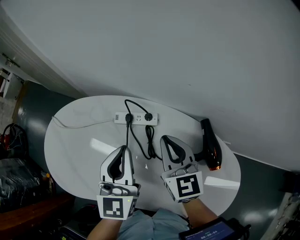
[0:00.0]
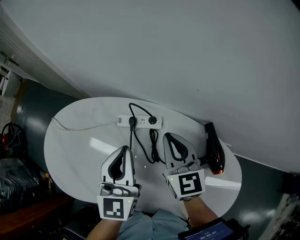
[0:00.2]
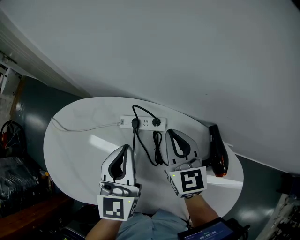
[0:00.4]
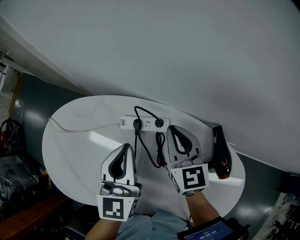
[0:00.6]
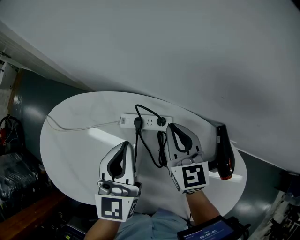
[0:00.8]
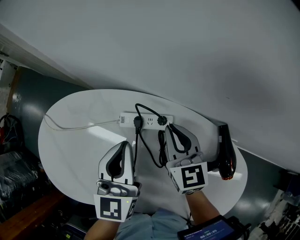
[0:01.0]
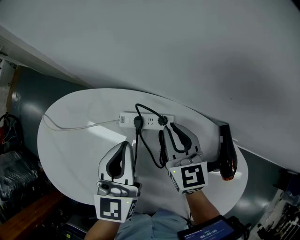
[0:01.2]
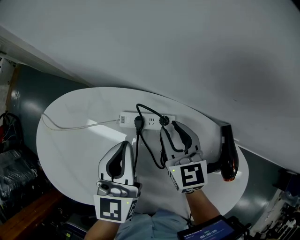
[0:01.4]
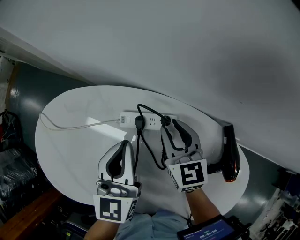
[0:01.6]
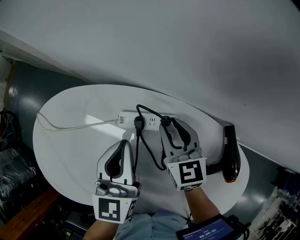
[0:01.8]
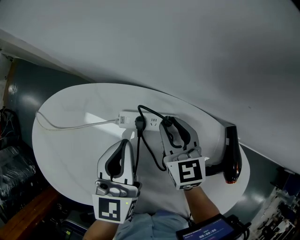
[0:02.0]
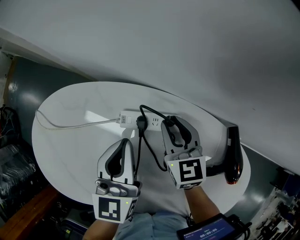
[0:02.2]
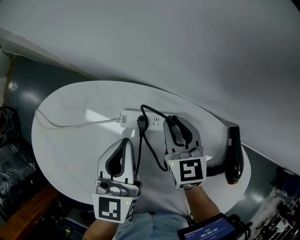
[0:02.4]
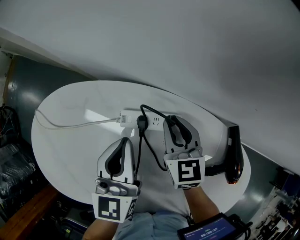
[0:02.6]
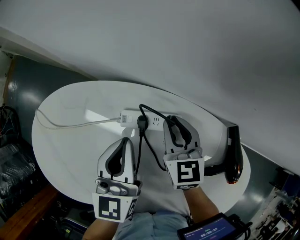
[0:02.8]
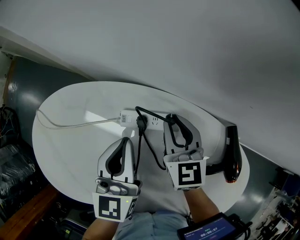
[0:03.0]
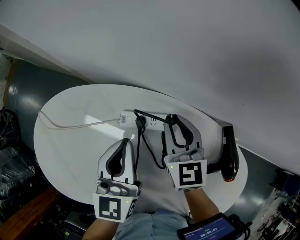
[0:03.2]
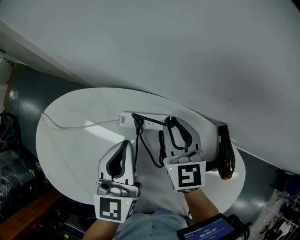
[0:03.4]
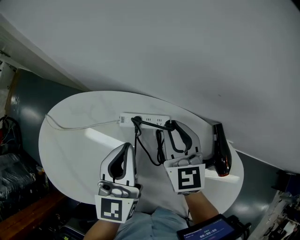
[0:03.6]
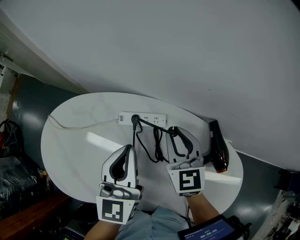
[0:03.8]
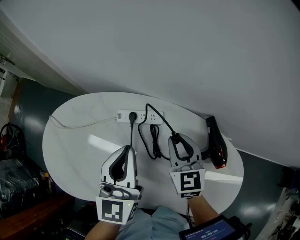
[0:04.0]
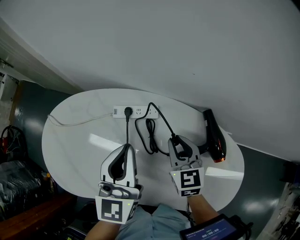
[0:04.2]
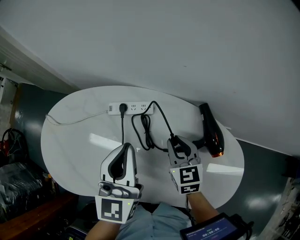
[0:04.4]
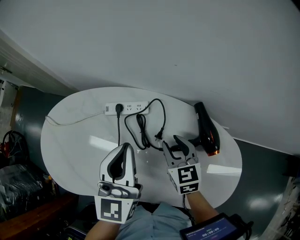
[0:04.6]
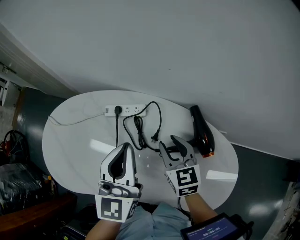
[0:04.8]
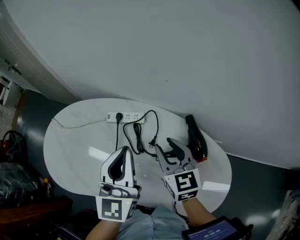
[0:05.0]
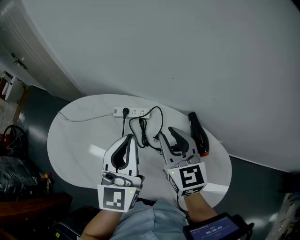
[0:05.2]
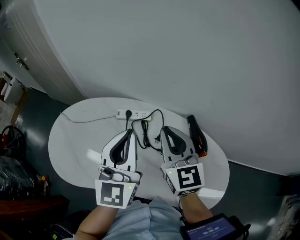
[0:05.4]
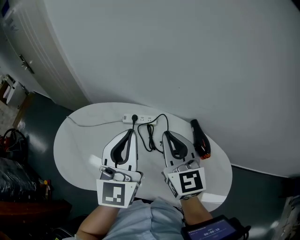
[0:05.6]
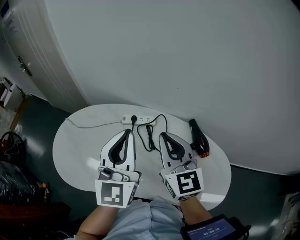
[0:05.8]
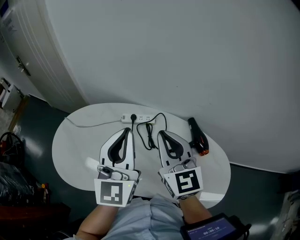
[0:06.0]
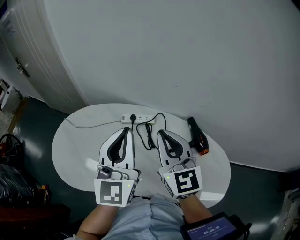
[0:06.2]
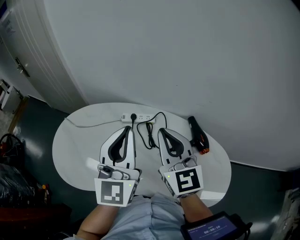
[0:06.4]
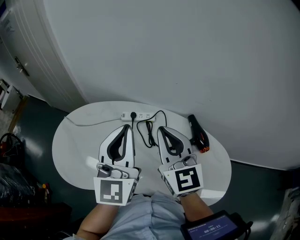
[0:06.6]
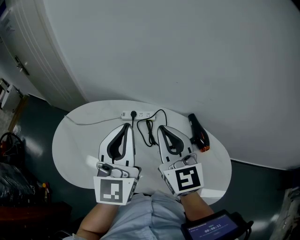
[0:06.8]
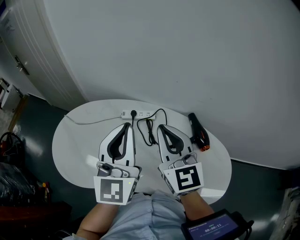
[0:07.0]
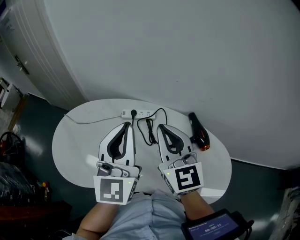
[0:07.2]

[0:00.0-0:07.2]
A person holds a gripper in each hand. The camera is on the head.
0:00.0 to 0:01.4: The right gripper goes about 10 cm downward and forward, and opens its fingers, while the left gripper goes about 10 cm forward and downward.
0:01.4 to 0:02.8: There are only small adjustments of the grippers.
0:02.8 to 0:04.4: The right gripper goes some 15 cm backward and to the right; the left gripper heads backward, upward and to the right, covering approximately 15 cm.
0:04.4 to 0:05.8: The left gripper shifts approximately 10 cm upward, while the right gripper heads upward, covering roughly 25 cm, and angles its fingers upward, by roughly 30 degrees.
0:05.8 to 0:07.2: The grippers make only small movements.

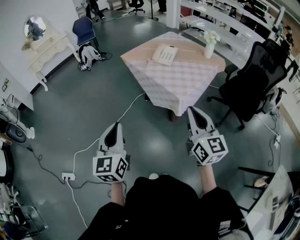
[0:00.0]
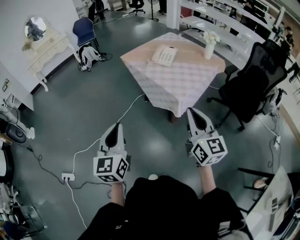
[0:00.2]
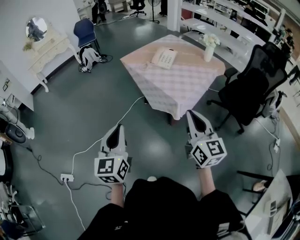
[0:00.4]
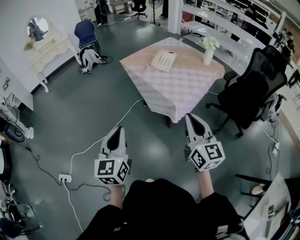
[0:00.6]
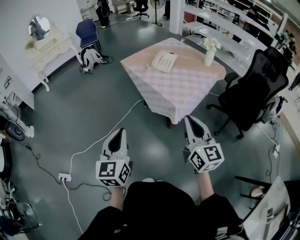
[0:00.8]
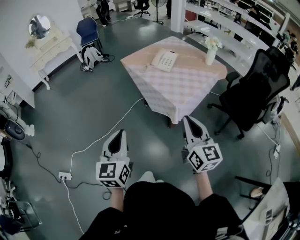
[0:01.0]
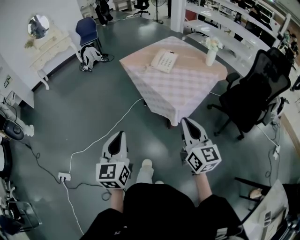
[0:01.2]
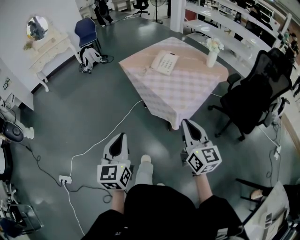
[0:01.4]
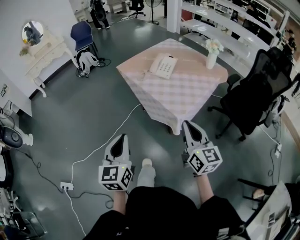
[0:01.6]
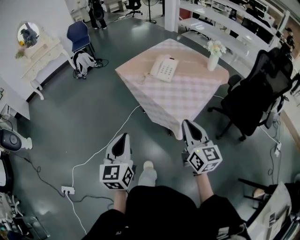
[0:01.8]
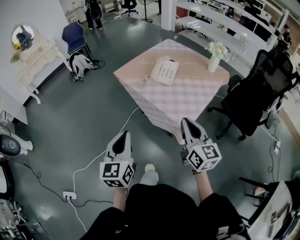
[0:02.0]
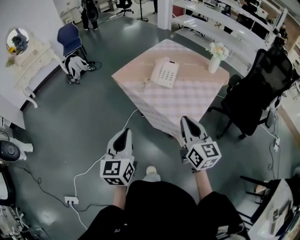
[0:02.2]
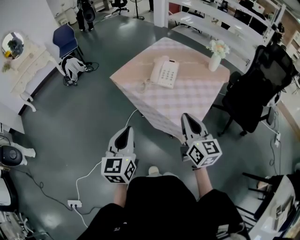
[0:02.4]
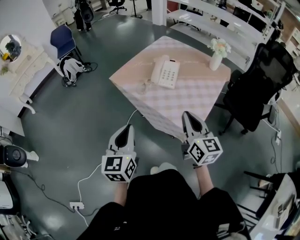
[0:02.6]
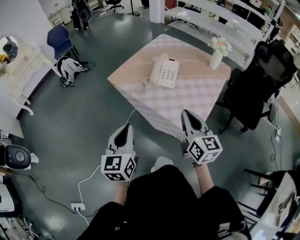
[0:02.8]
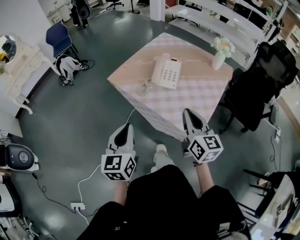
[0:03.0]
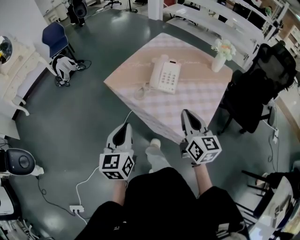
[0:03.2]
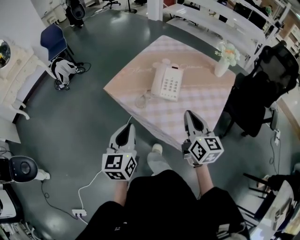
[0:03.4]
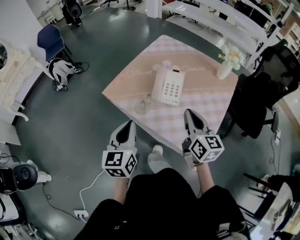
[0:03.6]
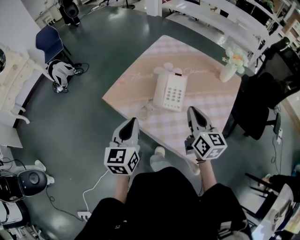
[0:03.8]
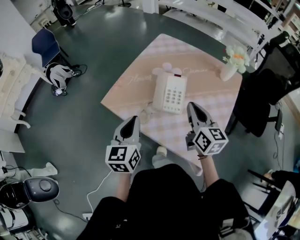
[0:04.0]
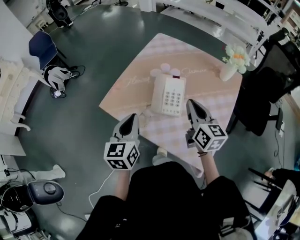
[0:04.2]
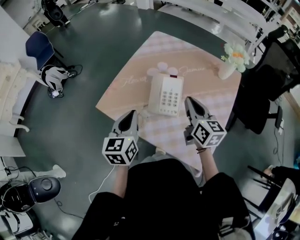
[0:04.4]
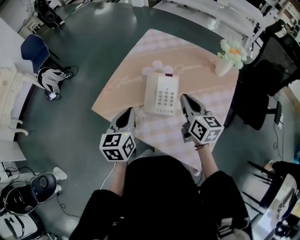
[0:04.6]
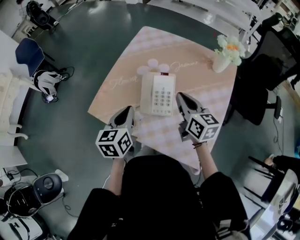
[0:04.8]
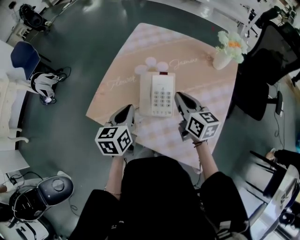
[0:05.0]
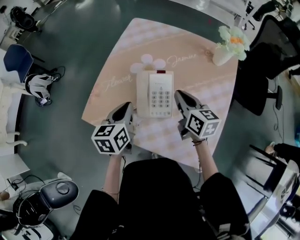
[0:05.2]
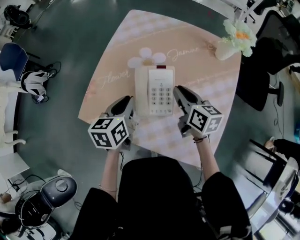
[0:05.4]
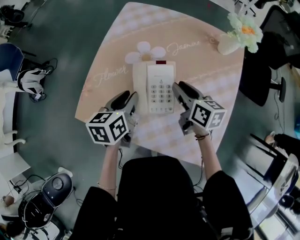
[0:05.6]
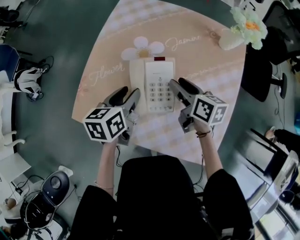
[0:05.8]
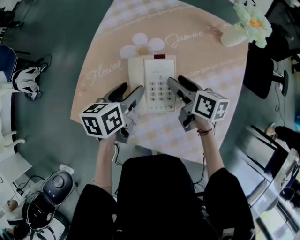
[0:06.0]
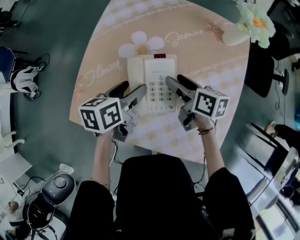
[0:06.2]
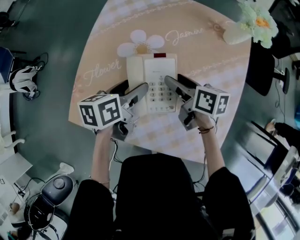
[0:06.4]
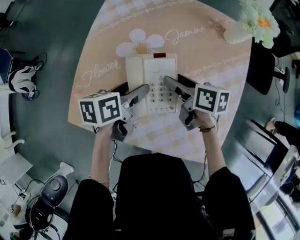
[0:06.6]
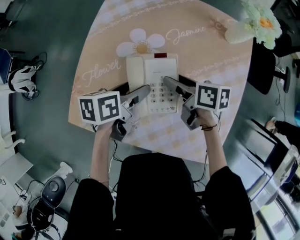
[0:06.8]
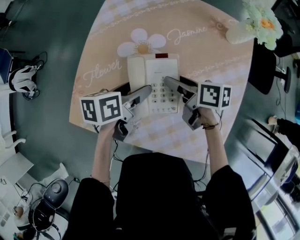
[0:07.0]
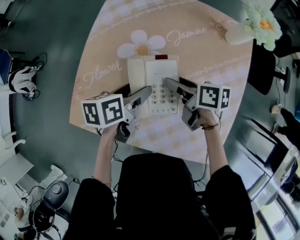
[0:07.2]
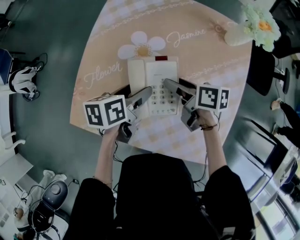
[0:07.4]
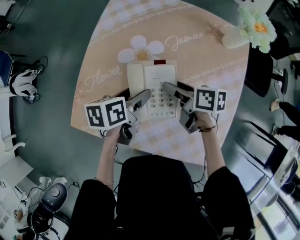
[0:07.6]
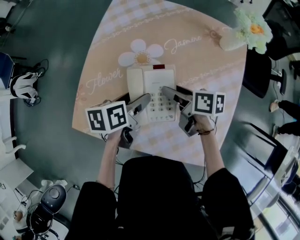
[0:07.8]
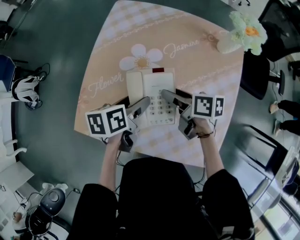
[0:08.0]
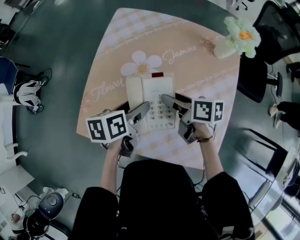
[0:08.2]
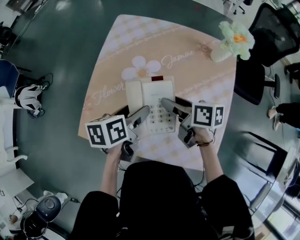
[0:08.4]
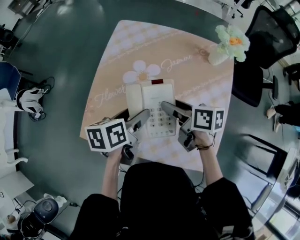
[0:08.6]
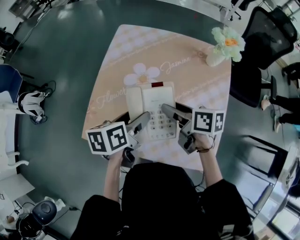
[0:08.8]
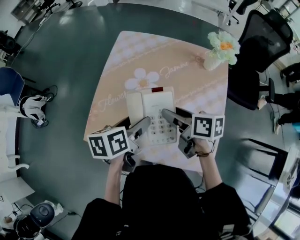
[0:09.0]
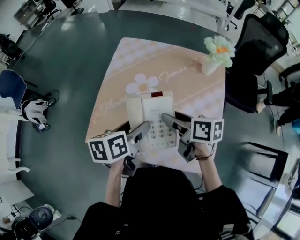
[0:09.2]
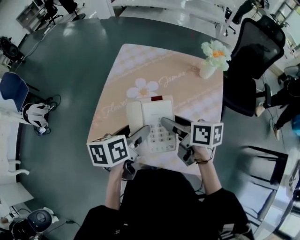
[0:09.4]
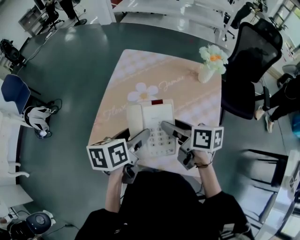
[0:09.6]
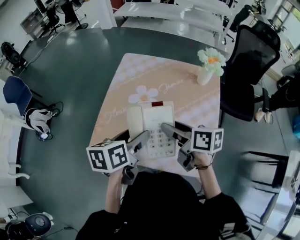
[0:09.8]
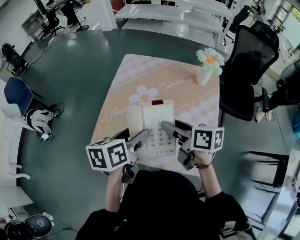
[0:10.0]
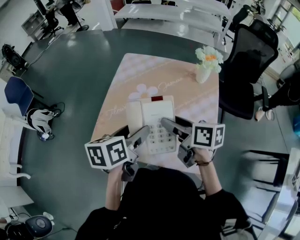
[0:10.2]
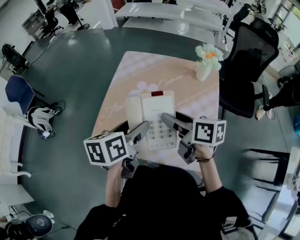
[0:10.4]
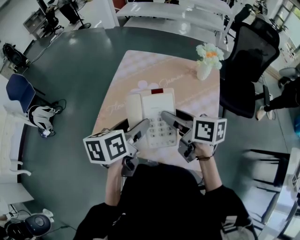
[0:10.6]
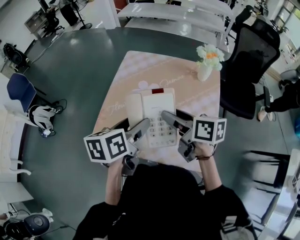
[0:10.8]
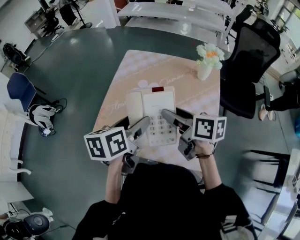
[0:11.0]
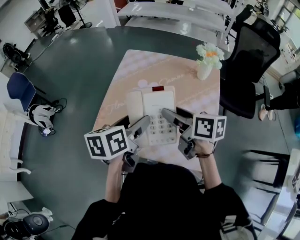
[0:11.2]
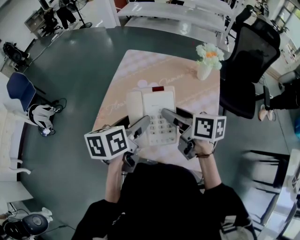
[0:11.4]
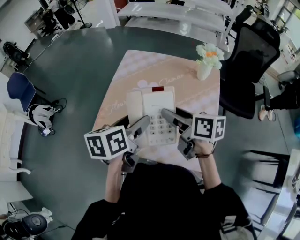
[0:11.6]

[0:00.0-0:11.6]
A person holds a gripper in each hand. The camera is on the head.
0:00.0 to 0:01.4: The left gripper travels to the right by approximately 5 cm. The right gripper travels forward by approximately 5 cm.
0:01.4 to 0:02.8: The grippers both shift forward by about 25 cm.
0:02.8 to 0:04.4: Both grippers travel together forward, about 30 cm.
0:04.4 to 0:05.8: The left gripper travels forward, downward and to the right by some 20 cm, turns by roughly 30 degrees, and opens. Meanwhile the right gripper moves downward and forward, roughly 15 cm, rotates roughly 30 degrees, and opens up.
0:05.8 to 0:07.2: The left gripper moves about 5 cm, rotates roughly 20 degrees, and opens up.
0:07.2 to 0:08.8: Both grippers move upward, some 10 cm.
0:08.8 to 0:10.2: Both grippers travel together upward and backward, roughly 15 cm.
0:10.2 to 0:11.6: The grippers stay close to where they were, moving slightly.

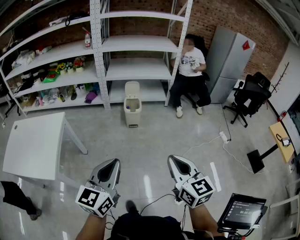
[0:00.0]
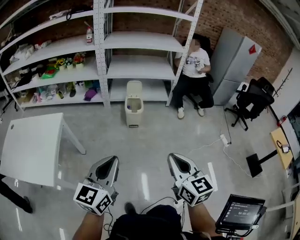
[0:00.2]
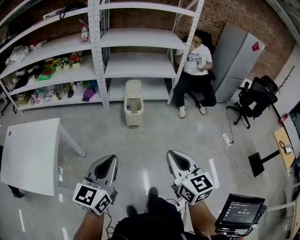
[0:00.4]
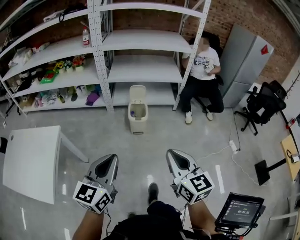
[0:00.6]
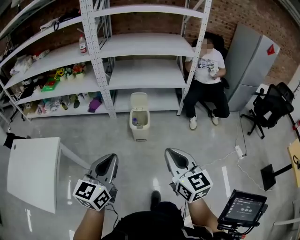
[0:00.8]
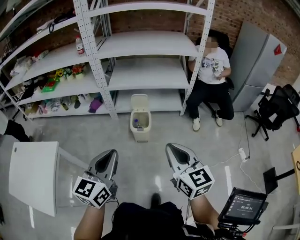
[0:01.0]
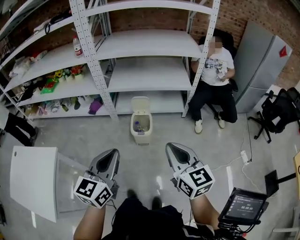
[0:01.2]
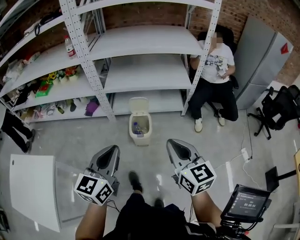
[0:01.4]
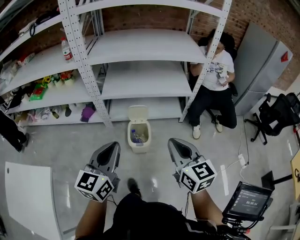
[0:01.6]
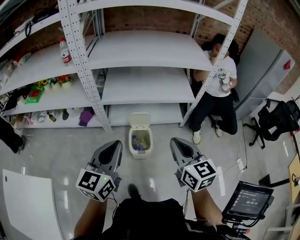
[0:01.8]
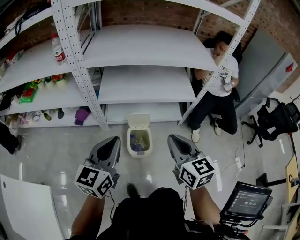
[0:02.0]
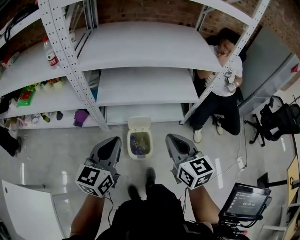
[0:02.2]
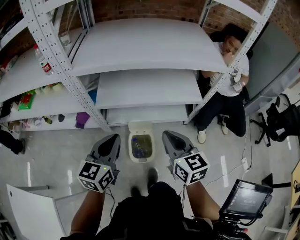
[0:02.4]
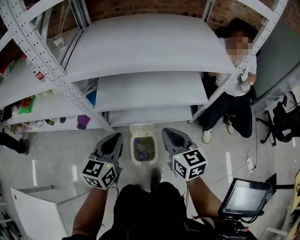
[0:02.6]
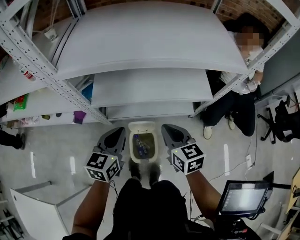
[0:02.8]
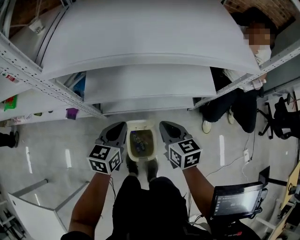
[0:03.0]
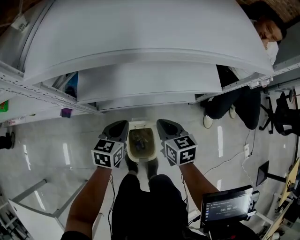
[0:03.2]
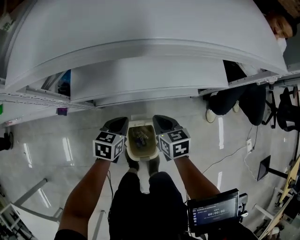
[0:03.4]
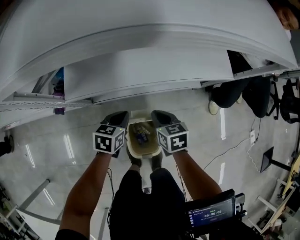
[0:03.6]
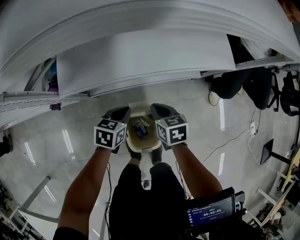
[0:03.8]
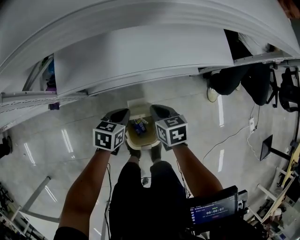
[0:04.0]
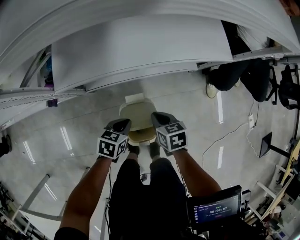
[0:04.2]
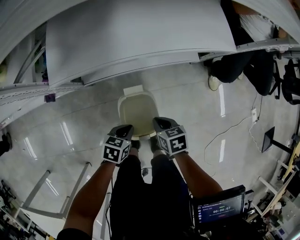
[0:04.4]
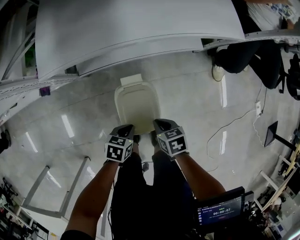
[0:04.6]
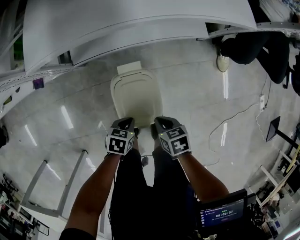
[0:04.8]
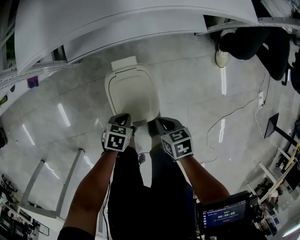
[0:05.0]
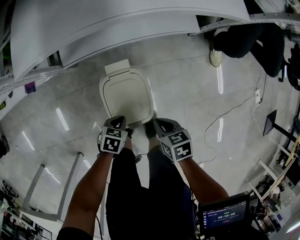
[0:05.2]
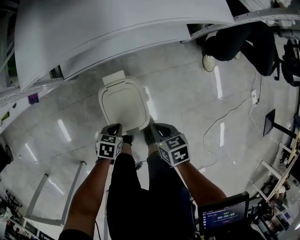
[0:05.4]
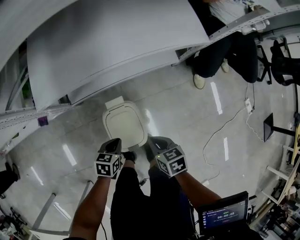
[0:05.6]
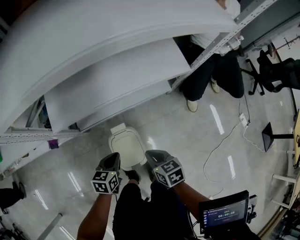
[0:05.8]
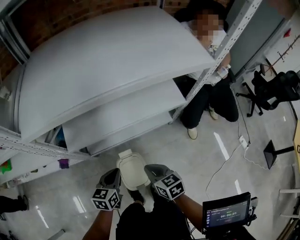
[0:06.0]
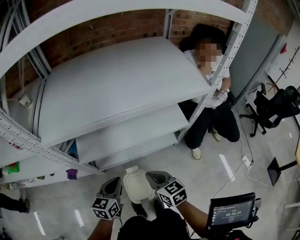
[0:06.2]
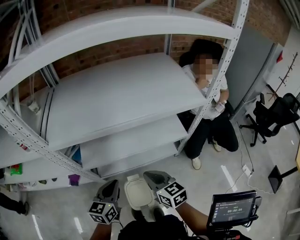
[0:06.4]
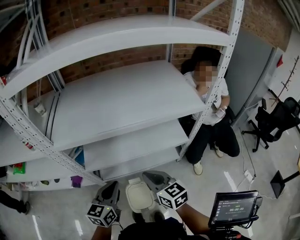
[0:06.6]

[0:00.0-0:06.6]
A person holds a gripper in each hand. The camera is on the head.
0:00.0 to 0:01.6: The pair of grippers is taken forward, about 60 cm.
0:01.6 to 0:03.2: The pair of grippers is taken forward, some 50 cm. Both grippers move downward, approximately 35 cm. The left gripper tips its fingers downward by about 30 degrees. The right gripper turns by about 30 degrees.
0:03.2 to 0:05.0: Both grippers move downward, approximately 30 cm. The right gripper changes its angle by roughly 30 degrees, while the left gripper turns by roughly 40 degrees.
0:05.0 to 0:06.6: The grippers both shift upward by roughly 60 cm. The left gripper points its fingers roughly 50 degrees further upward. The right gripper angles its fingers upward, by roughly 50 degrees.
